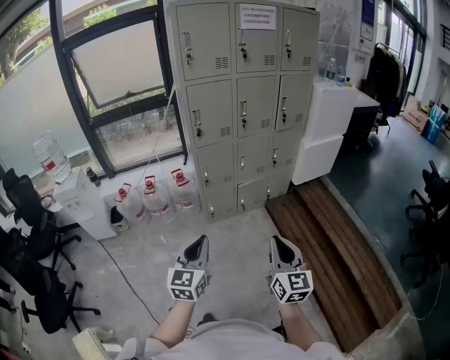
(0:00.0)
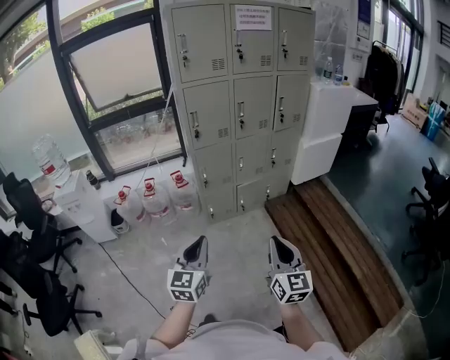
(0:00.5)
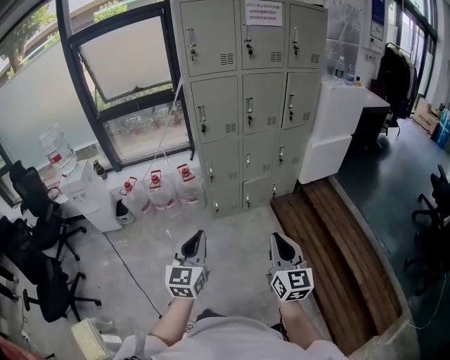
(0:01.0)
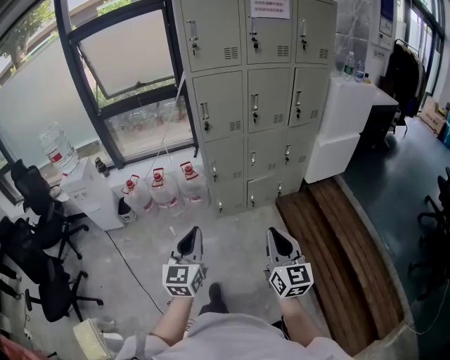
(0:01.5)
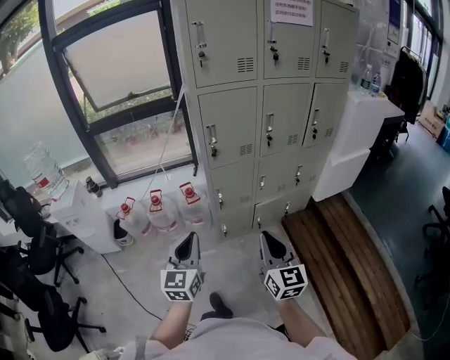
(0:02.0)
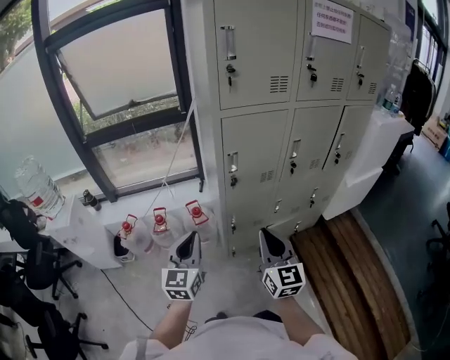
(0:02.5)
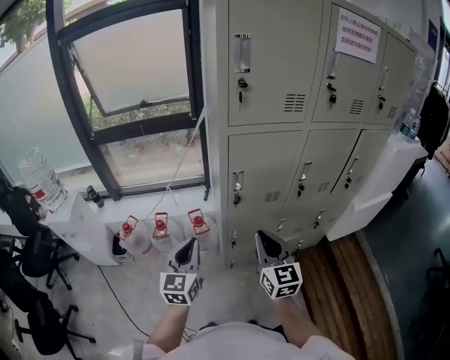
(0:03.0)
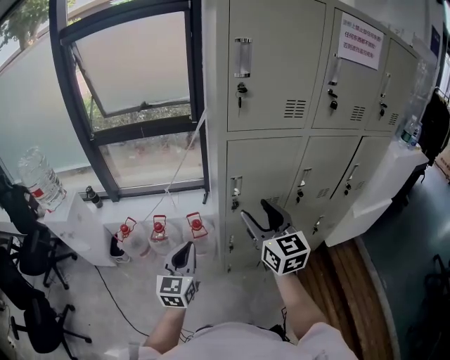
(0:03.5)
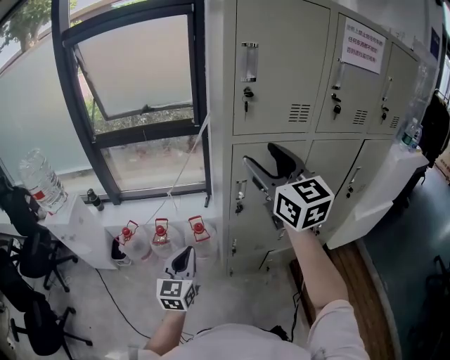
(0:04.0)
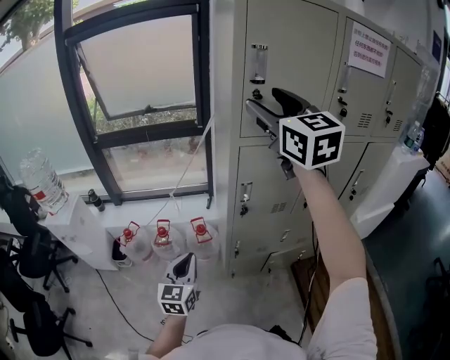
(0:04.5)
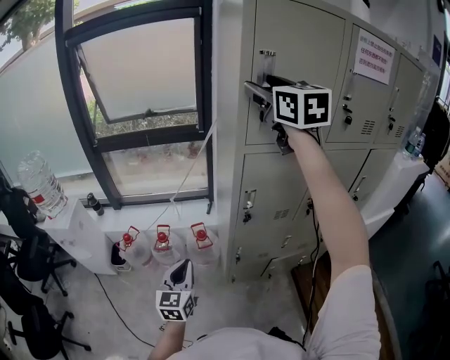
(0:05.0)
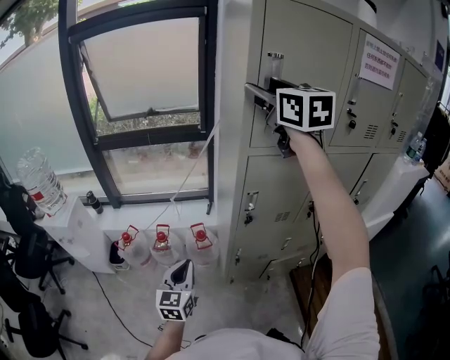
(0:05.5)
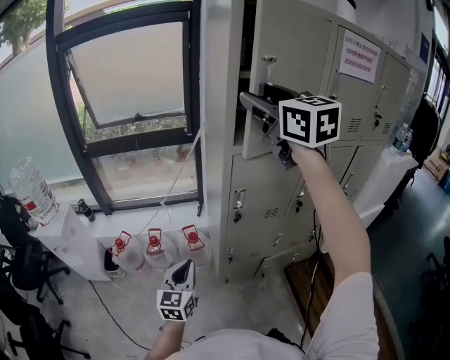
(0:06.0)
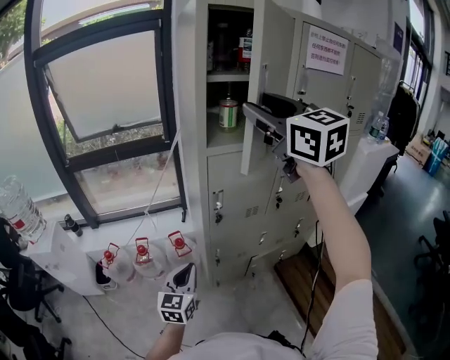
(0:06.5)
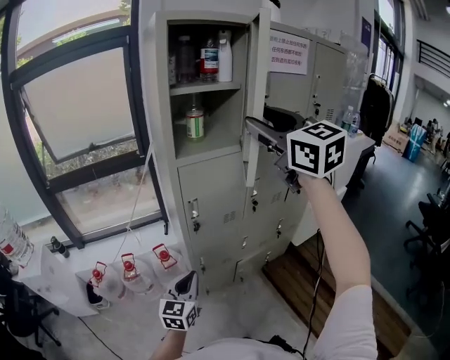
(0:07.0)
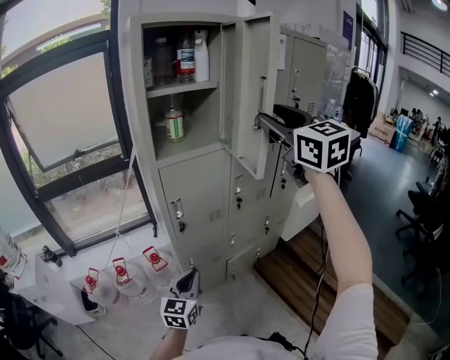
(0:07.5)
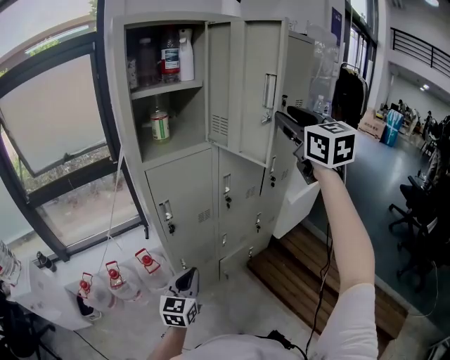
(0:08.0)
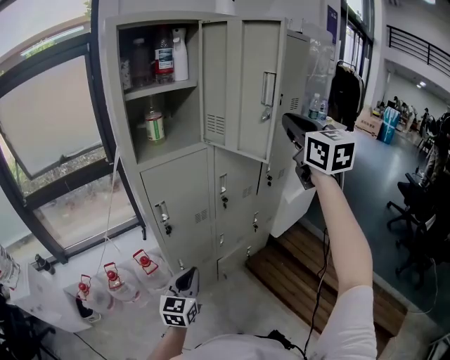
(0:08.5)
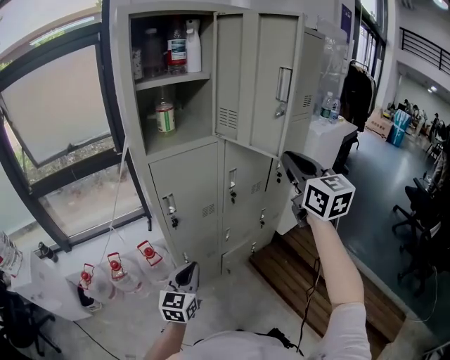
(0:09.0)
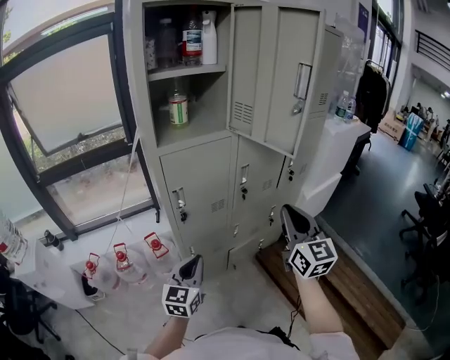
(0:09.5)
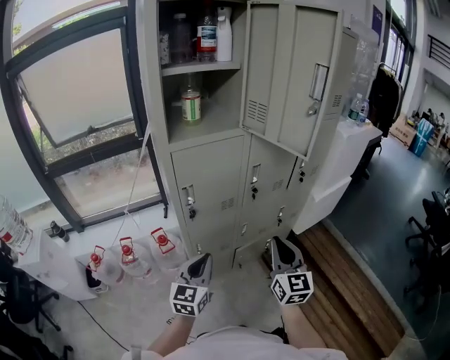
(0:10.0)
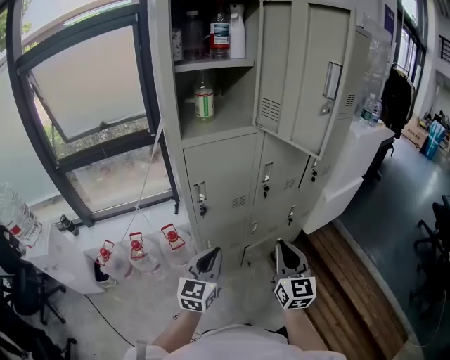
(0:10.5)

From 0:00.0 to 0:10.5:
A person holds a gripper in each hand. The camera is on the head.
From 0:00.0 to 0:02.0: Both grippers travel together forward and to the left, about 30 cm.
From 0:02.0 to 0:04.0: The right gripper heads forward and upward, covering about 50 cm, turns by some 20 degrees, and opens its fingers; the left gripper shifts roughly 25 cm forward.
From 0:04.0 to 0:06.5: The right gripper shifts some 15 cm upward.
From 0:06.5 to 0:08.5: The left gripper changes place by roughly 15 cm, while the right gripper shifts by about 30 cm, swivels some 30 degrees, and closes its fingers.
From 0:08.5 to 0:10.5: The right gripper heads downward, covering roughly 35 cm.

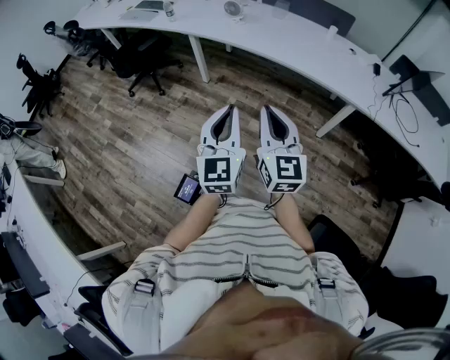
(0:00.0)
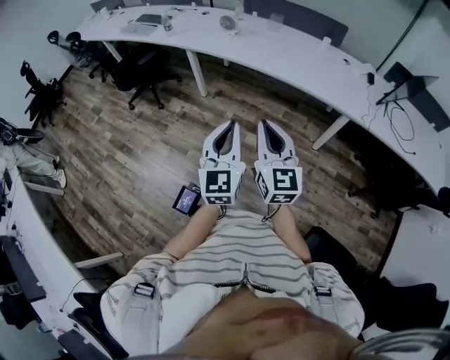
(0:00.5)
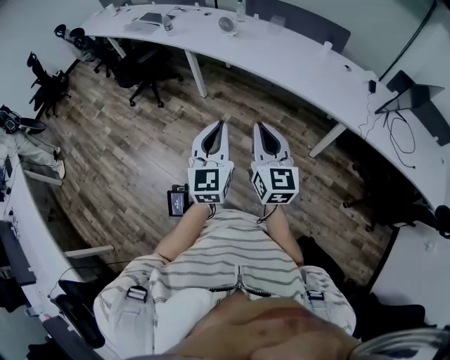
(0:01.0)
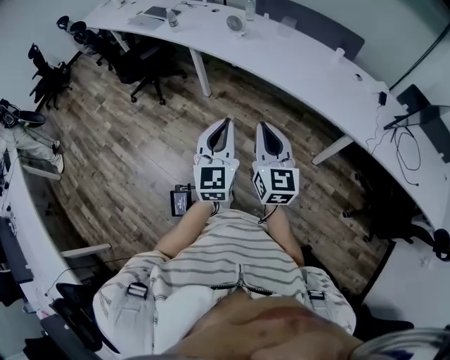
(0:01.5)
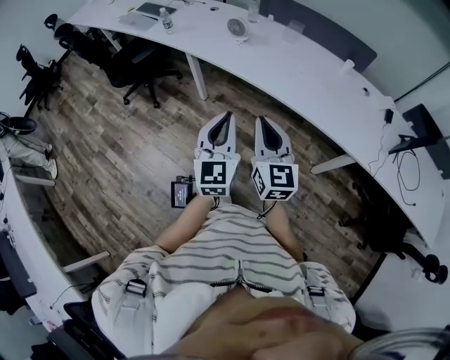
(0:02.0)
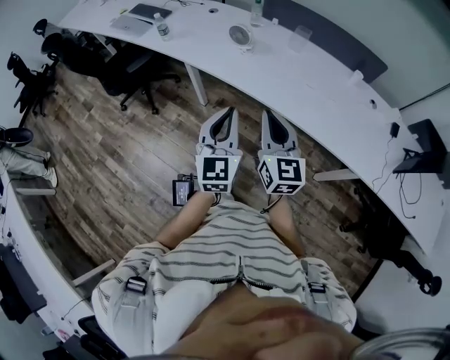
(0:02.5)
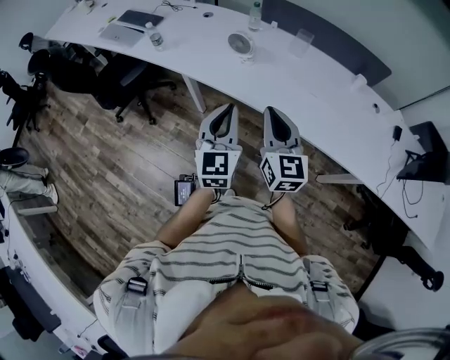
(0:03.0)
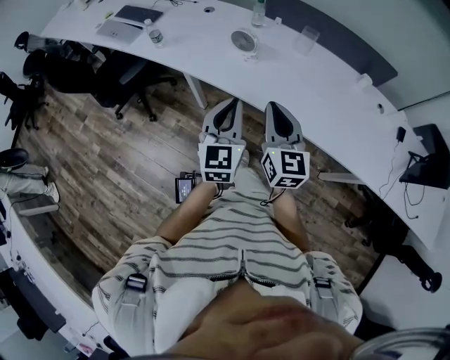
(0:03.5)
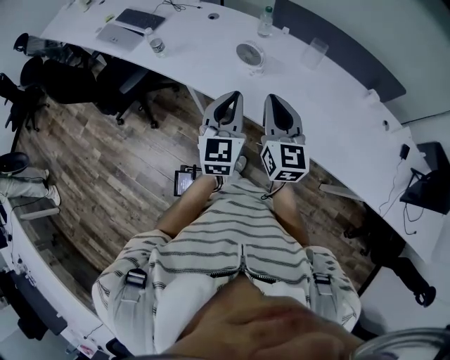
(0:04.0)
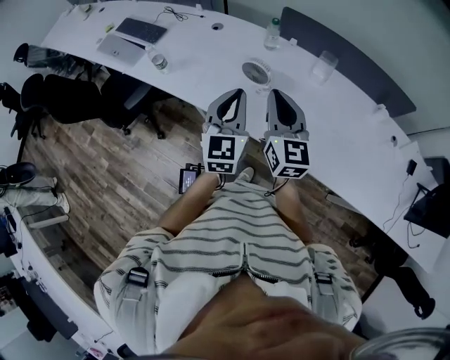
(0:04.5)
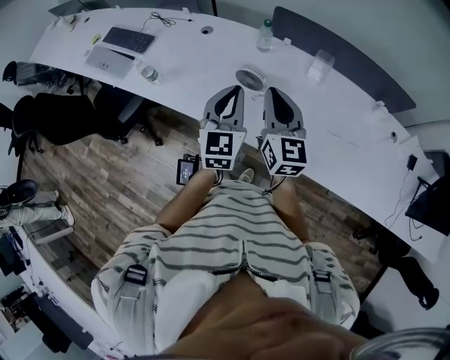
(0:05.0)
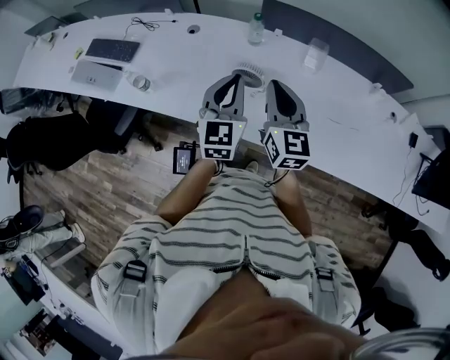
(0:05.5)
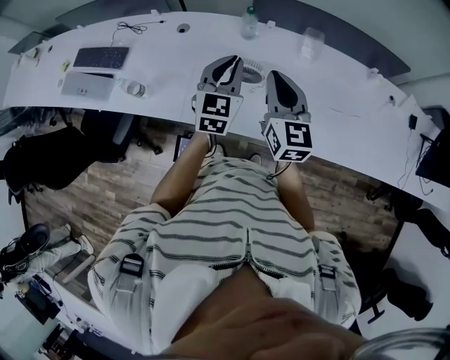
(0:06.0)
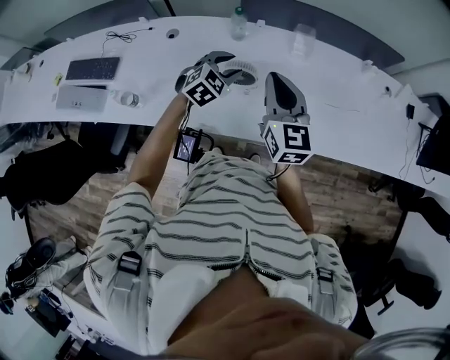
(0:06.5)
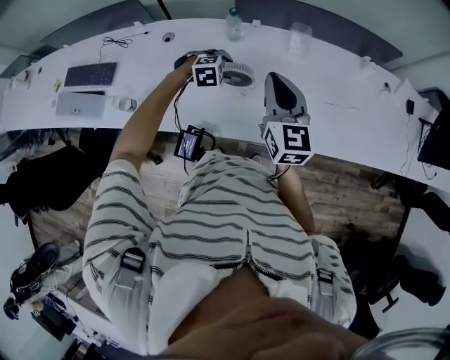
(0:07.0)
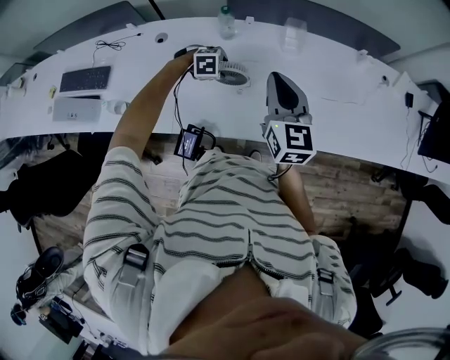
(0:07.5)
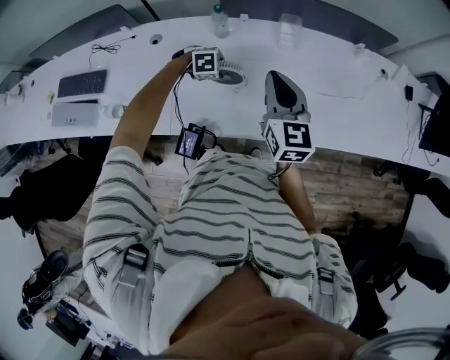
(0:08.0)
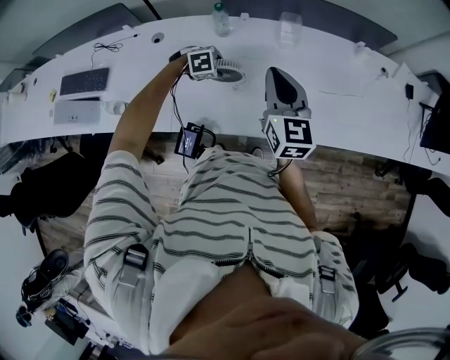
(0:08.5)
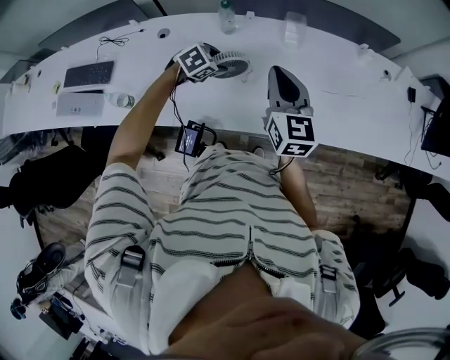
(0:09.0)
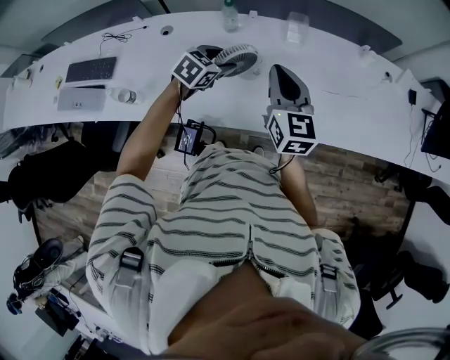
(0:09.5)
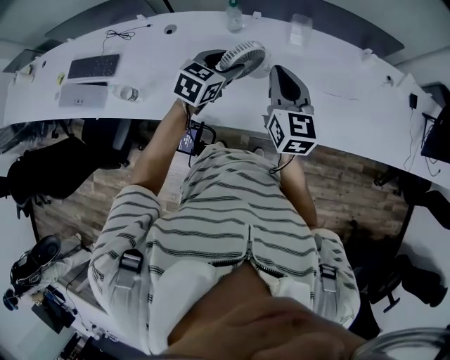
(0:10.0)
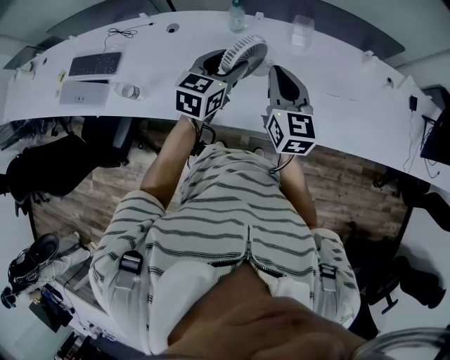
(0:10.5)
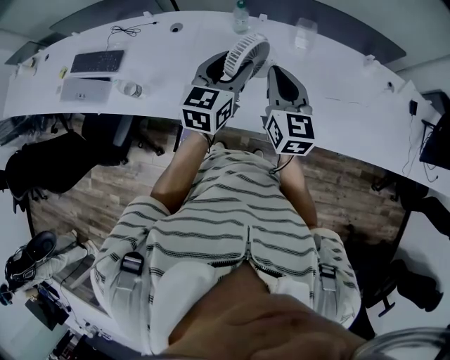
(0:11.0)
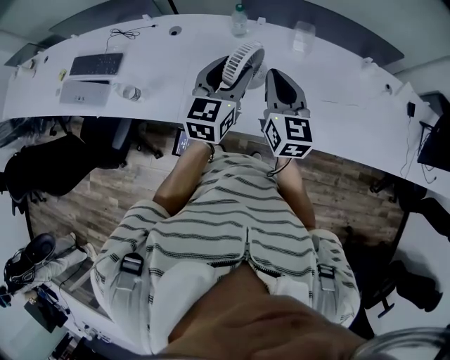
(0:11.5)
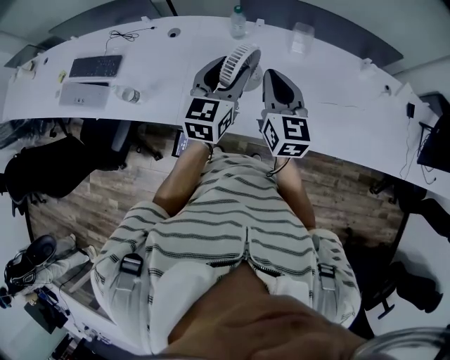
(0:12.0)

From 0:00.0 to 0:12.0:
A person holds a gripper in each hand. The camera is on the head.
From 0:00.0 to 0:02.0: Both grippers move forward, about 25 cm.
From 0:02.0 to 0:04.0: The pair of grippers is taken forward, some 40 cm.
From 0:04.0 to 0:06.0: The two grippers go some 25 cm forward. The left gripper changes its angle by approximately 30 degrees.
From 0:06.0 to 0:08.0: The right gripper shifts by roughly 5 cm. Meanwhile the left gripper moves downward, about 25 cm, tilts its fingers roughly 60 degrees downward, and opens.
From 0:08.0 to 0:10.0: The left gripper heads upward, covering some 20 cm, and angles its fingers upward, by approximately 40 degrees.
From 0:10.0 to 0:12.0: The left gripper is displaced upward by roughly 10 cm, and turns by about 30 degrees.

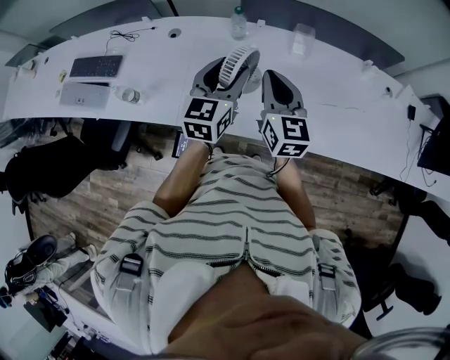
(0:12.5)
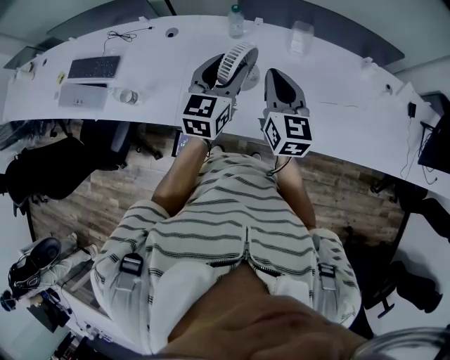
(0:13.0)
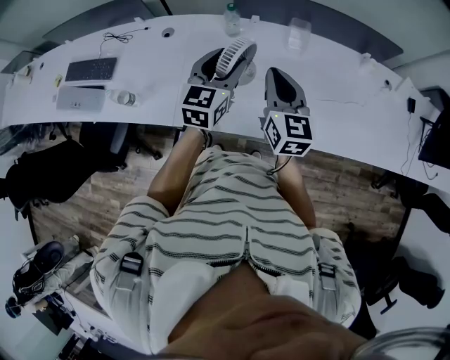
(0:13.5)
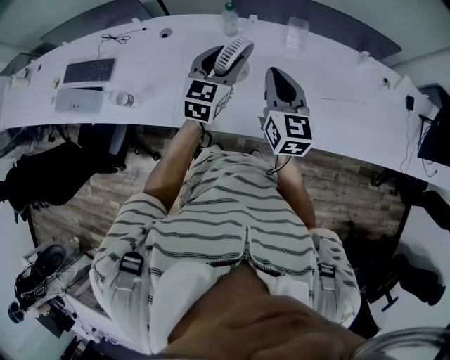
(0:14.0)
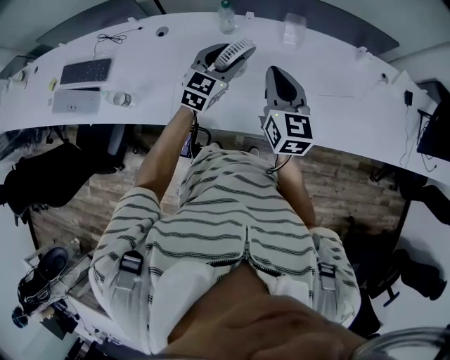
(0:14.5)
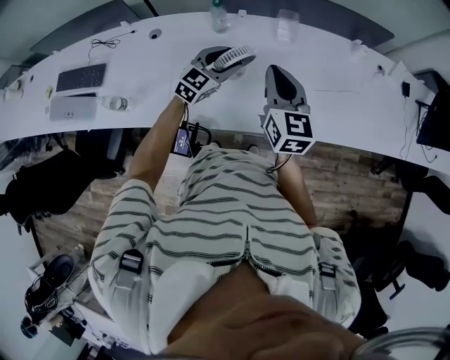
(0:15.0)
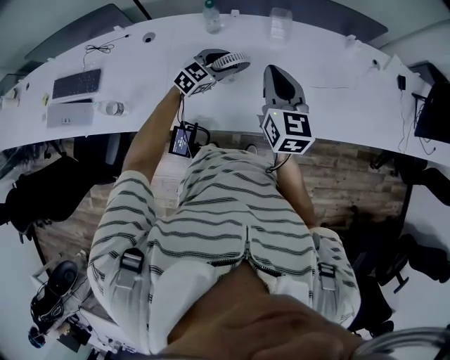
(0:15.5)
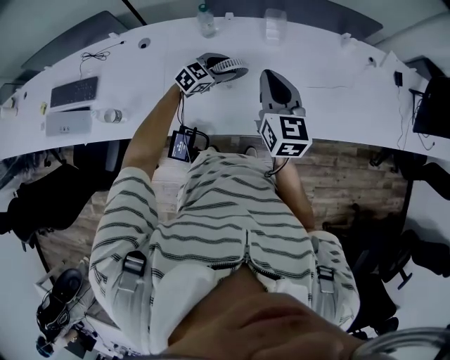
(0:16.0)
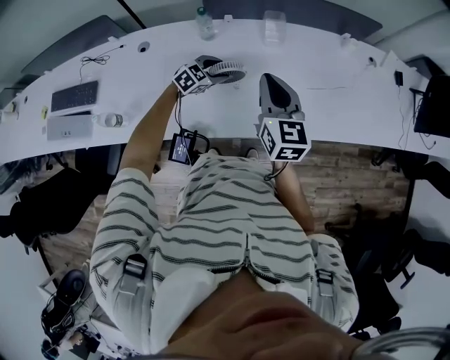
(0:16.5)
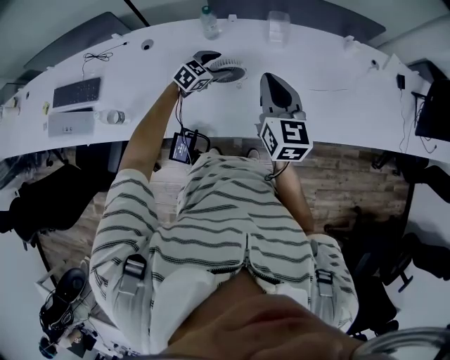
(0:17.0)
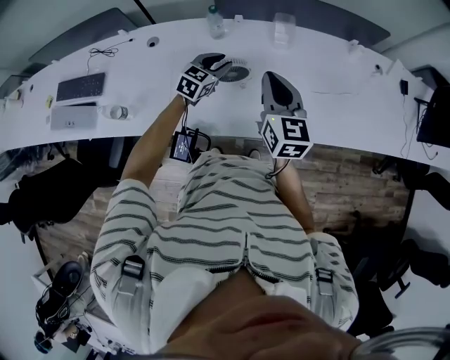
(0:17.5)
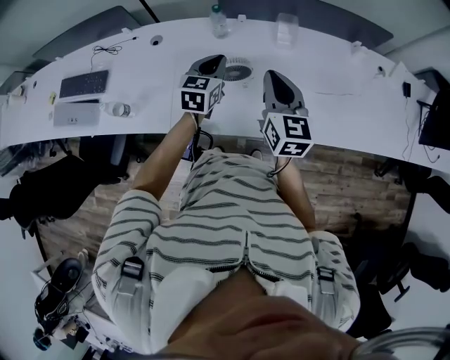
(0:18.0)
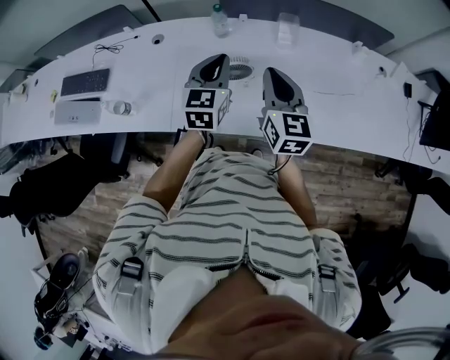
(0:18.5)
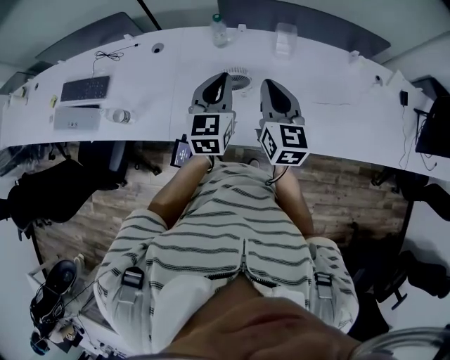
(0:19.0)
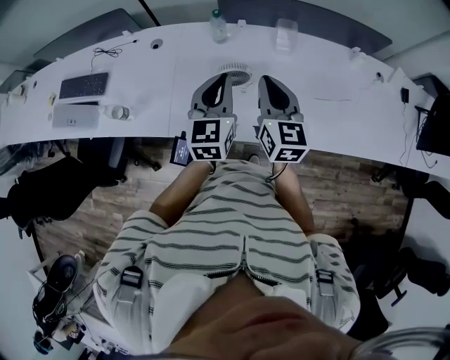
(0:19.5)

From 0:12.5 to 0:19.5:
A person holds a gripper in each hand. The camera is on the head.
From 0:12.5 to 0:14.5: The left gripper moves downward and forward, approximately 10 cm, and turns by some 20 degrees.
From 0:14.5 to 0:16.0: The left gripper heads downward, covering approximately 15 cm, and turns by about 30 degrees.
From 0:16.0 to 0:17.5: The left gripper ends up some 5 cm from where it was, rotates approximately 20 degrees, and closes.
From 0:17.5 to 0:19.5: The left gripper is displaced upward and backward by some 20 cm, turns by about 40 degrees, and closes its fingers.
